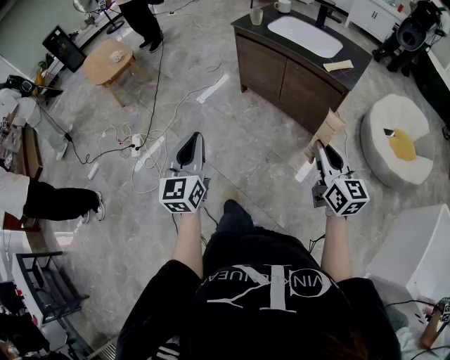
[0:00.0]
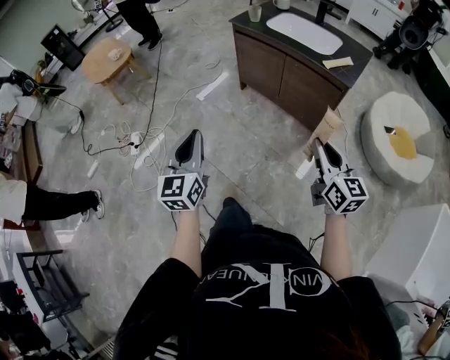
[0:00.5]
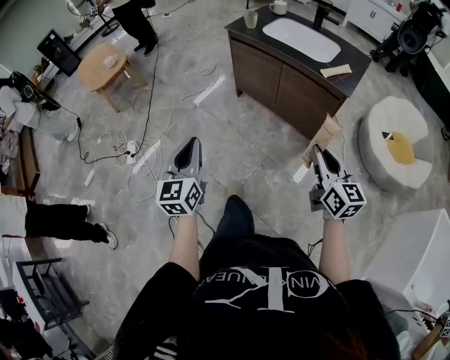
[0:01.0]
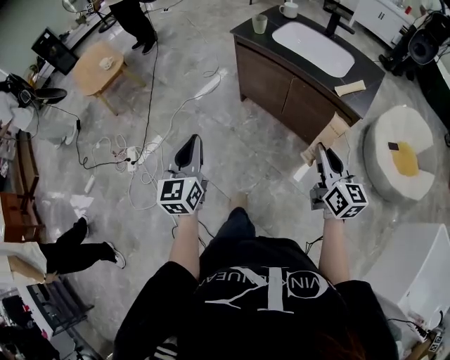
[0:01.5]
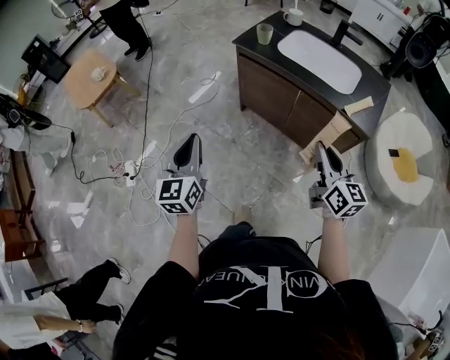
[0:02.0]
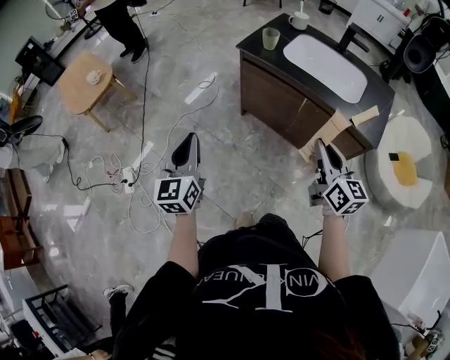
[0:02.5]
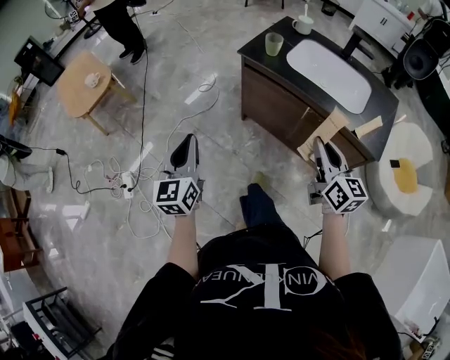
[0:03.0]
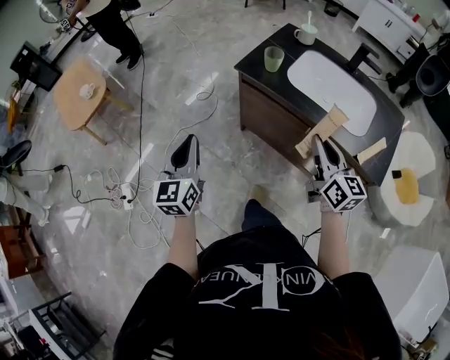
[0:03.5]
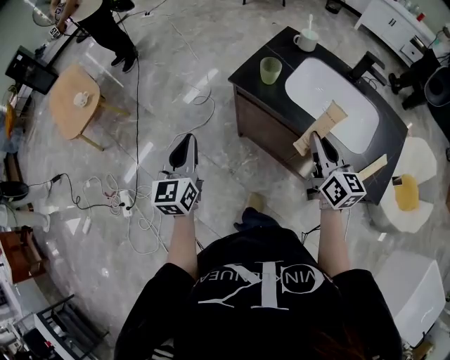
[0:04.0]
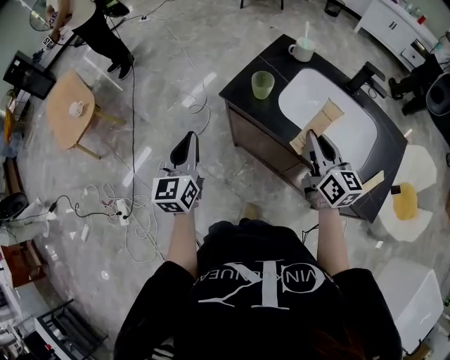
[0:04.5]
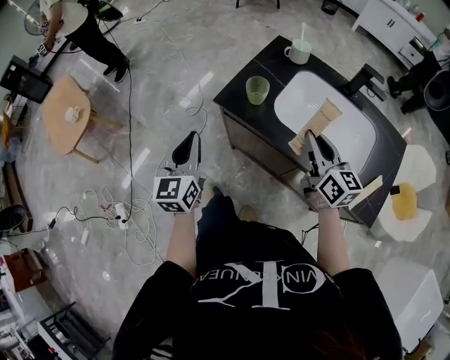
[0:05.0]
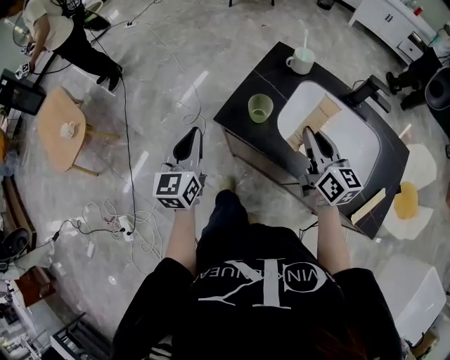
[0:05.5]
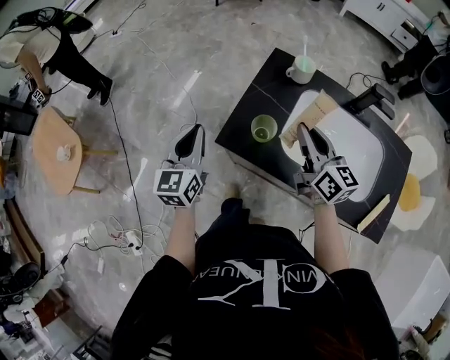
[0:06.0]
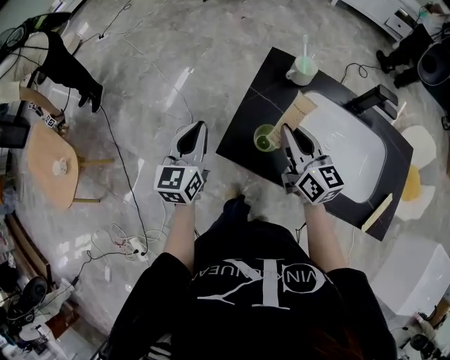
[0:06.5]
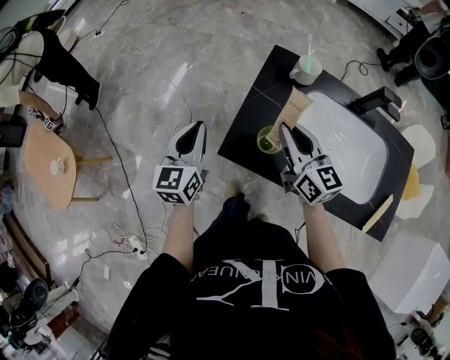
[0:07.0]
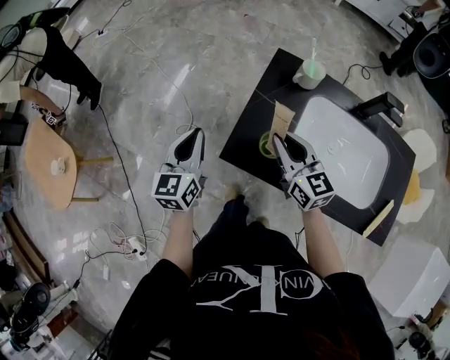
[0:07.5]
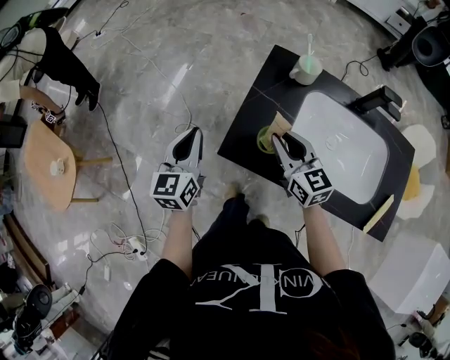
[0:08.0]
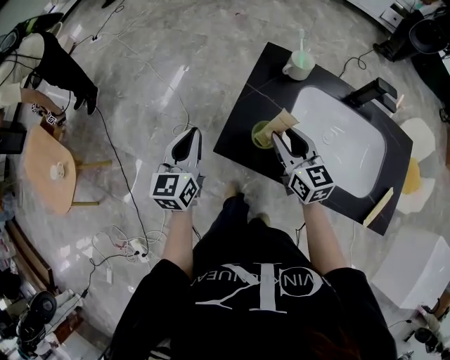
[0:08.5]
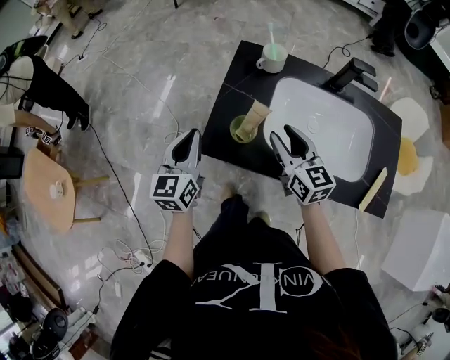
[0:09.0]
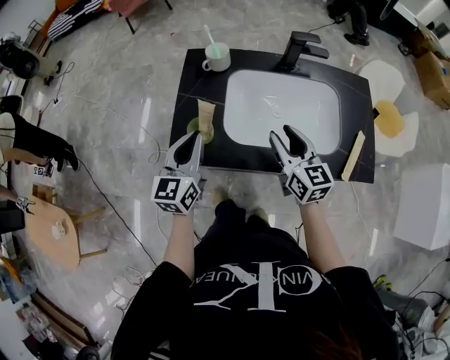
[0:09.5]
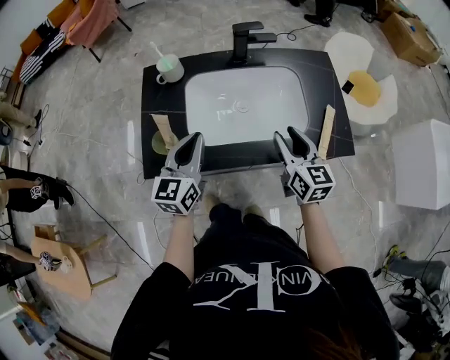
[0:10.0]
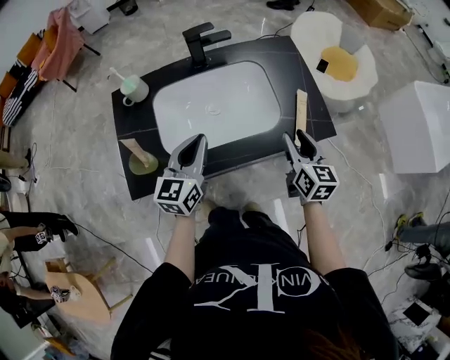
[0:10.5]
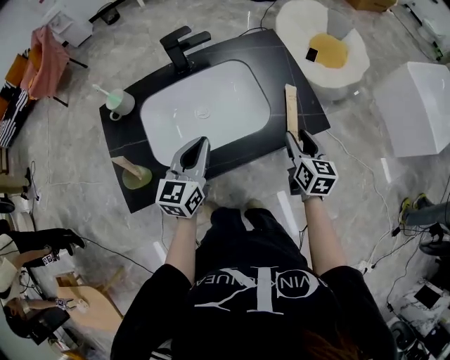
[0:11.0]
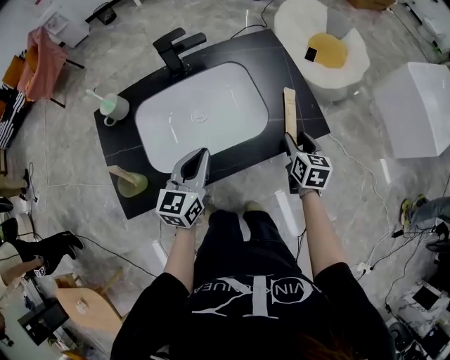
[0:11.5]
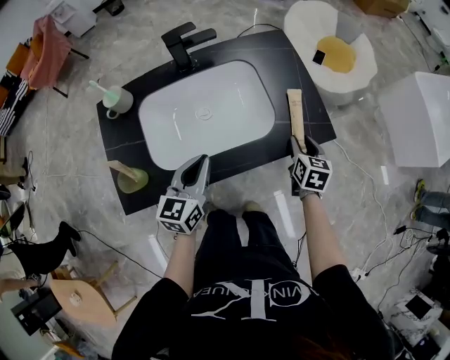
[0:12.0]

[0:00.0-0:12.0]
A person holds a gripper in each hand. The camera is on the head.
0:00.0 to 0:02.0: Both grippers travel together forward, some 30 cm.
0:02.0 to 0:04.0: The grippers both shift forward by about 30 cm.
0:04.0 to 0:06.0: Both grippers move forward, about 30 cm.
0:06.0 to 0:08.0: The right gripper heads downward and to the left, covering some 10 cm. The left gripper heads forward, covering some 5 cm.
0:08.0 to 0:10.0: The right gripper ends up some 35 cm from where it was, rotates approximately 40 degrees, and opens its fingers. The left gripper changes place by approximately 30 cm, and turns by approximately 30 degrees.
0:10.0 to 0:12.0: The right gripper shifts some 25 cm to the right and downward, and turns by about 40 degrees. Meanwhile the left gripper travels to the right and downward by about 15 cm.

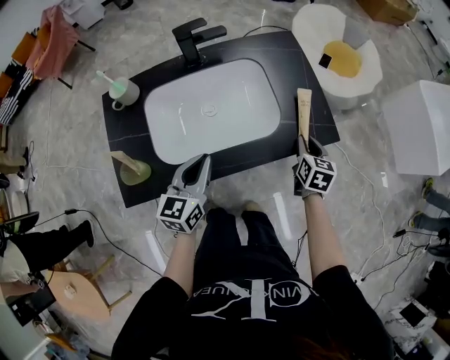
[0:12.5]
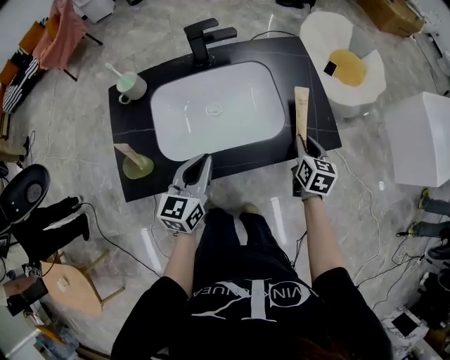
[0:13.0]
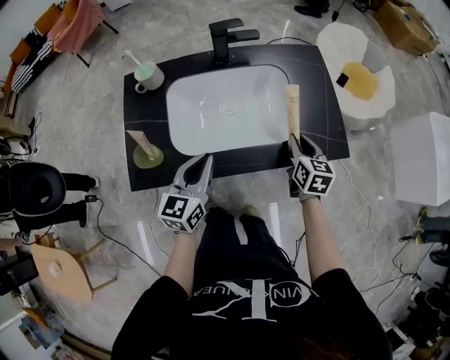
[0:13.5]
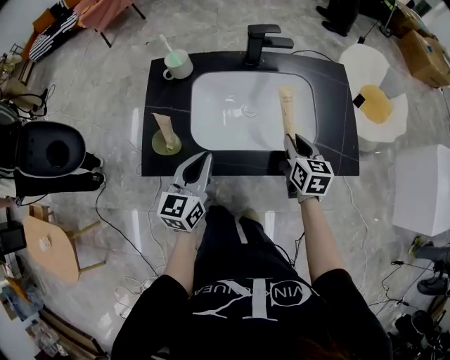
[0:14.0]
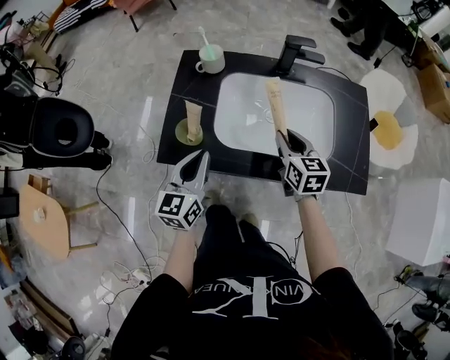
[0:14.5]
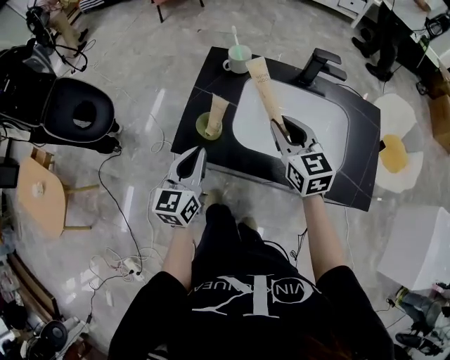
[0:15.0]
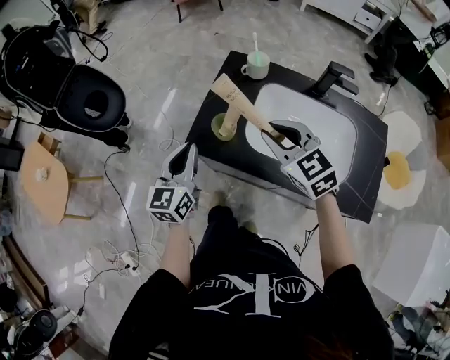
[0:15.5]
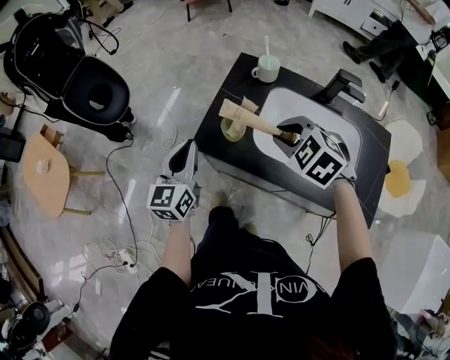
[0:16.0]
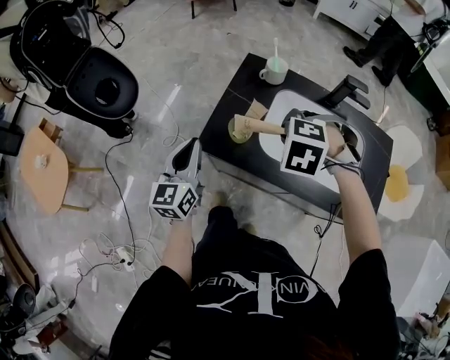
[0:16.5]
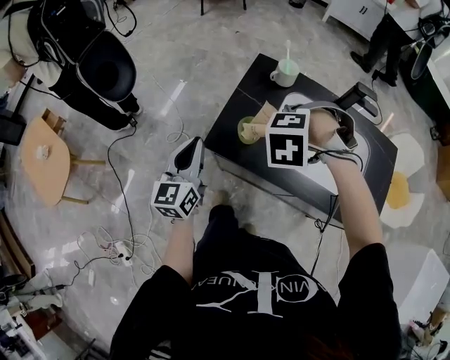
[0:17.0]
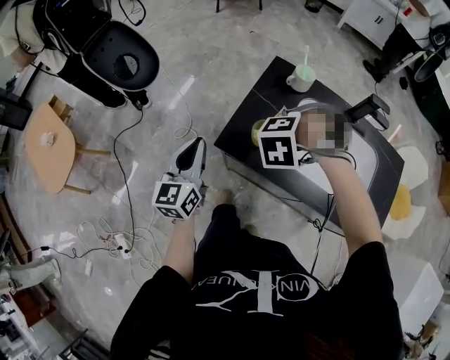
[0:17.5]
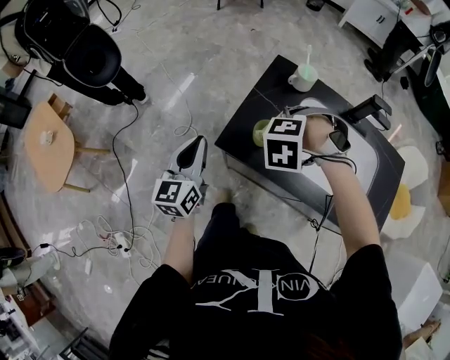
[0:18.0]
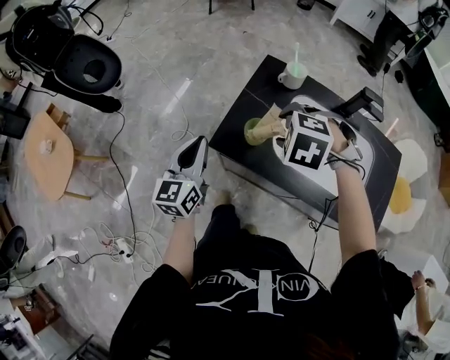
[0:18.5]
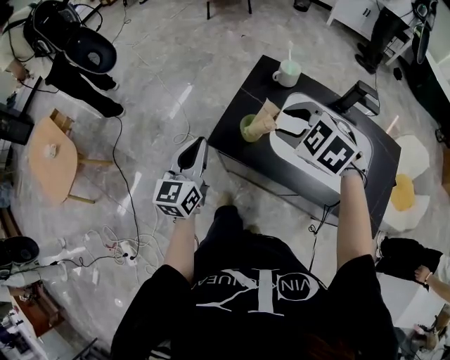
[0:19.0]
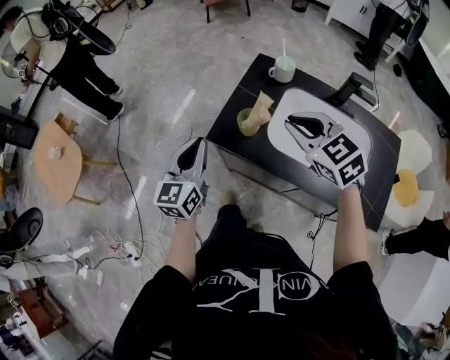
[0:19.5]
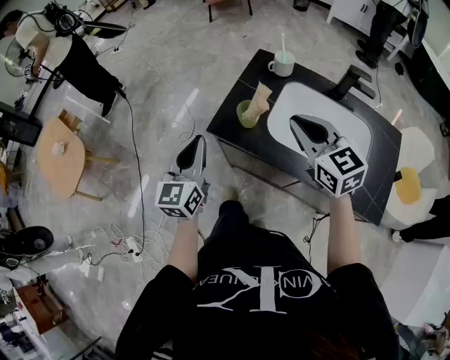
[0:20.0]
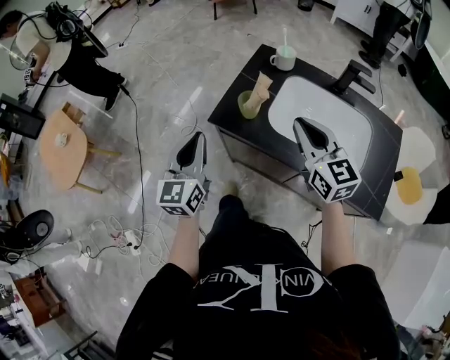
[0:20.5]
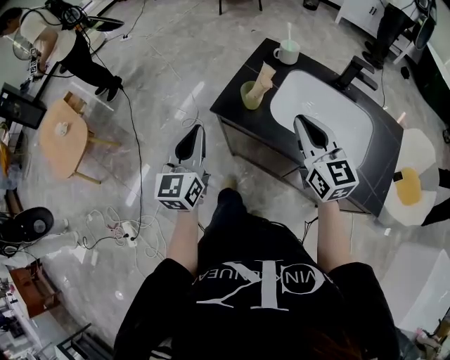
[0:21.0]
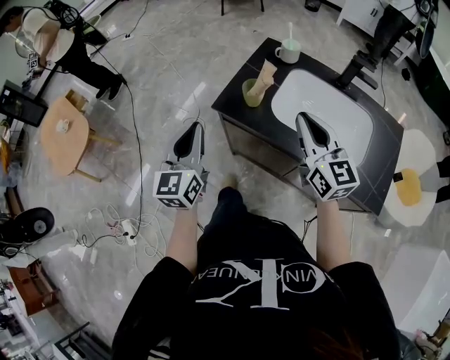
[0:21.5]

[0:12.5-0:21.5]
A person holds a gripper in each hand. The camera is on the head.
0:12.5 to 0:14.5: The left gripper moves some 20 cm, and rotates roughly 30 degrees. The right gripper ends up approximately 30 cm from where it was, and changes its angle by about 40 degrees.
0:14.5 to 0:17.0: The left gripper ends up some 20 cm from where it was, and turns by approximately 20 degrees. The right gripper ends up about 20 cm from where it was, and twists roughly 100 degrees counterclockwise, seen from behind.
0:17.0 to 0:19.5: The left gripper moves approximately 5 cm. Meanwhile the right gripper heads upward, covering approximately 5 cm, angles its fingers upward, by about 50 degrees, and opens, then closes again.
0:19.5 to 0:21.5: Both grippers travel together backward, some 10 cm. The right gripper angles its fingers upward, by approximately 30 degrees.

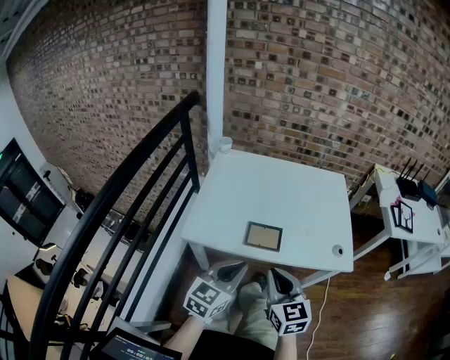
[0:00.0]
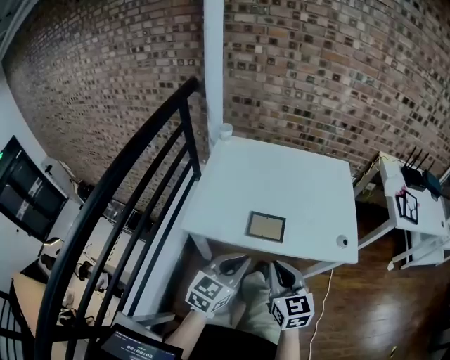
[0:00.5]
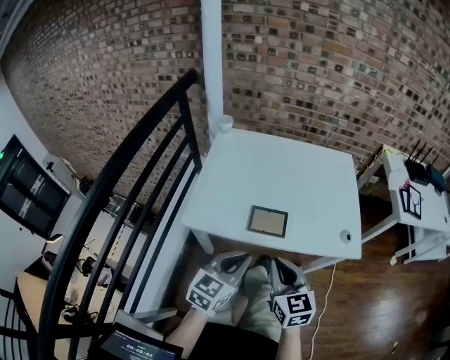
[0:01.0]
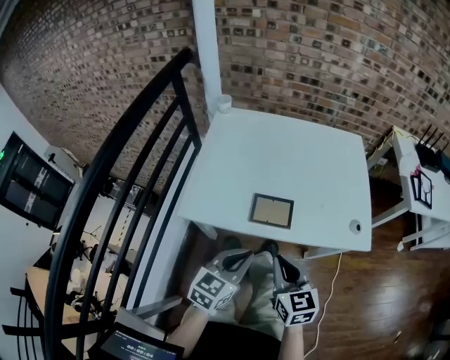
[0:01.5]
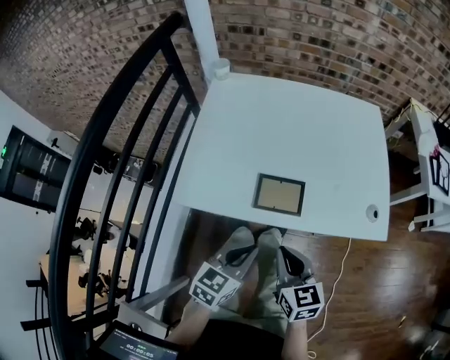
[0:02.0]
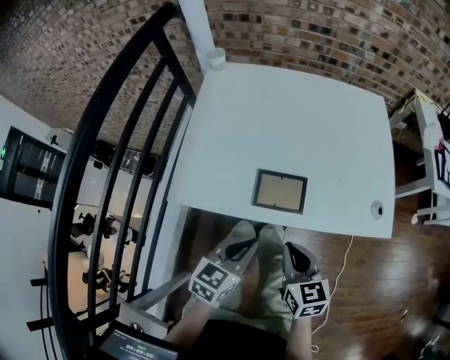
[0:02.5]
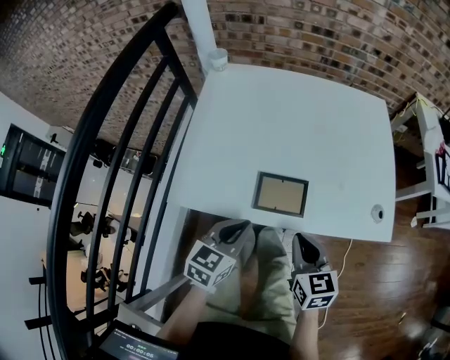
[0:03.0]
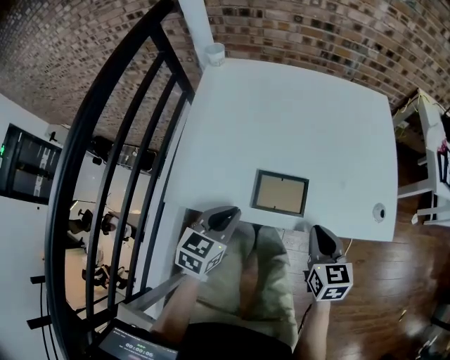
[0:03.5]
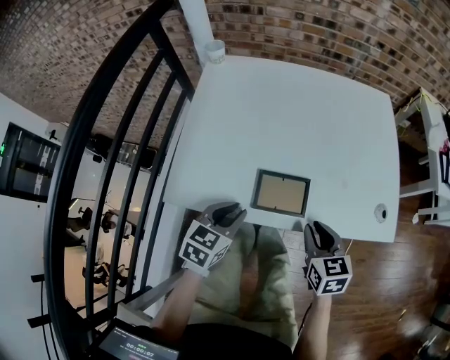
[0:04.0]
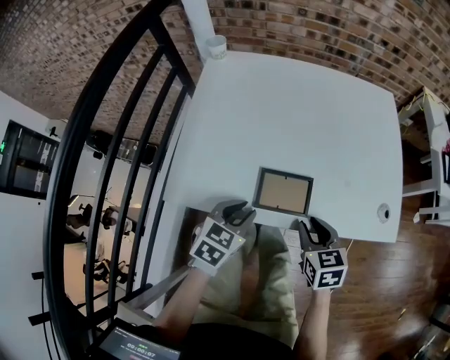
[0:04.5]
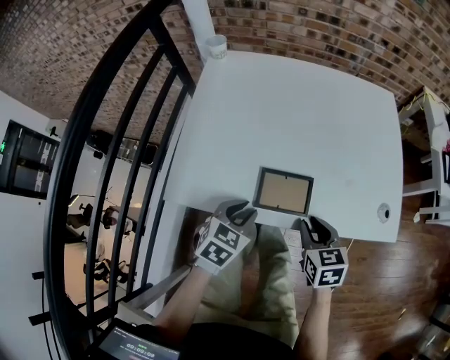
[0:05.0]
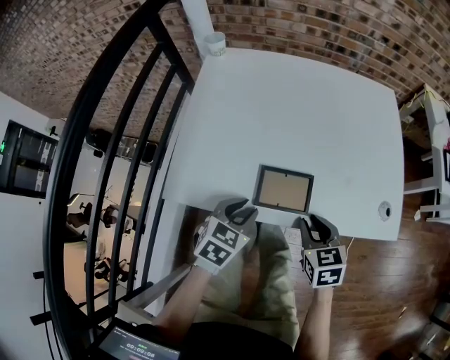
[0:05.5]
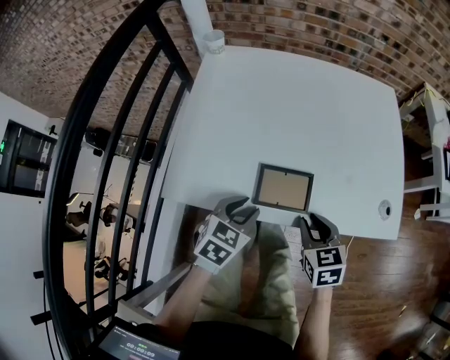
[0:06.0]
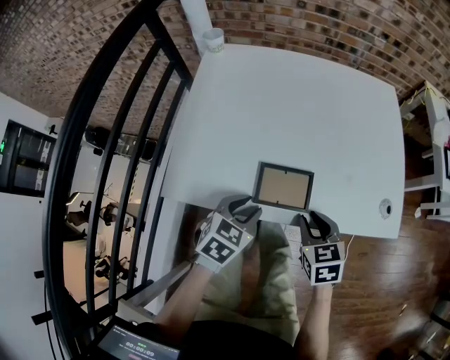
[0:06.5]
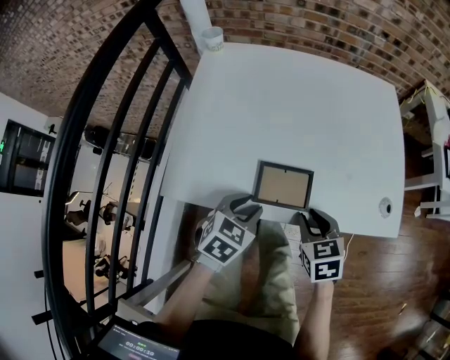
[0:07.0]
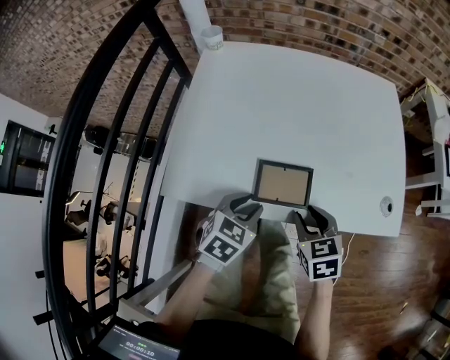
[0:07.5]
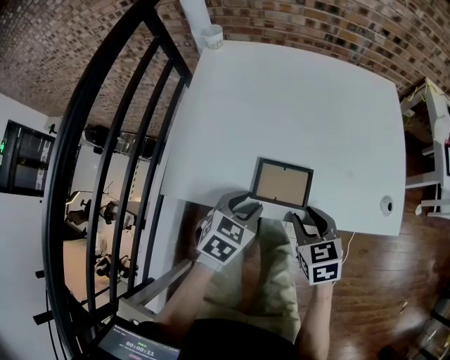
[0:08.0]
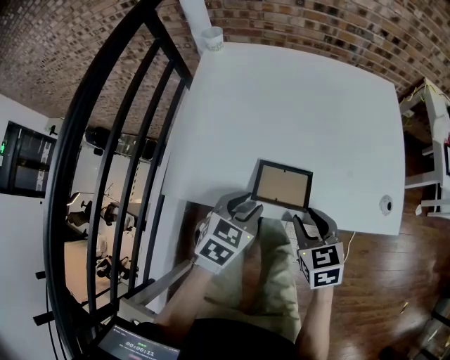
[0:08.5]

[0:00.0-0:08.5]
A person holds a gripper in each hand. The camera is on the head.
0:00.0 to 0:02.0: Both grippers travel together downward, some 10 cm.
0:02.0 to 0:04.0: The right gripper is displaced forward, to the right and downward by roughly 15 cm; the left gripper goes roughly 10 cm forward and to the left, and opens its fingers.
0:04.0 to 0:08.5: There are only small adjustments of the grippers.
